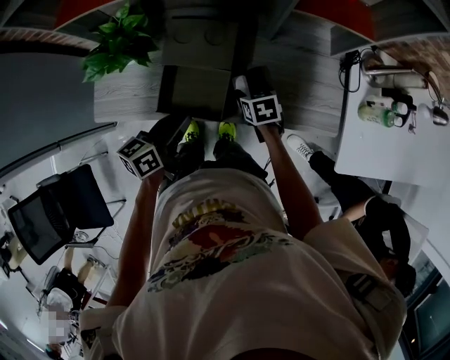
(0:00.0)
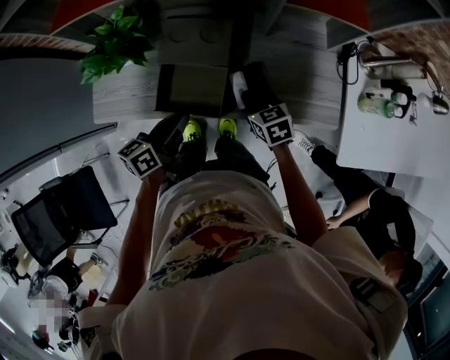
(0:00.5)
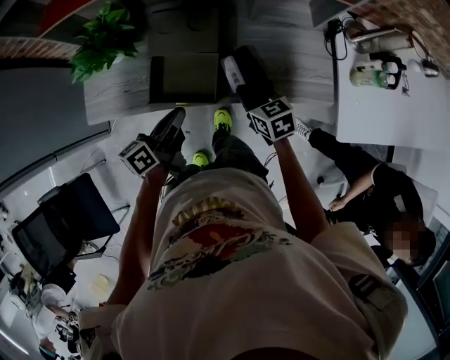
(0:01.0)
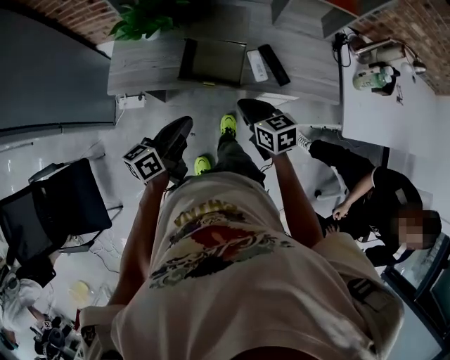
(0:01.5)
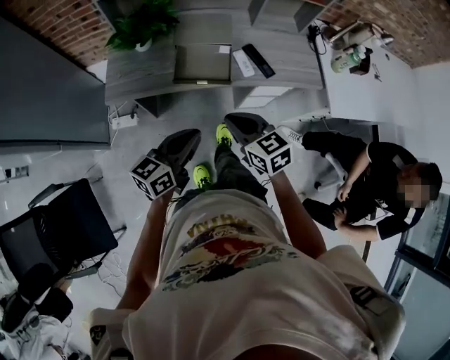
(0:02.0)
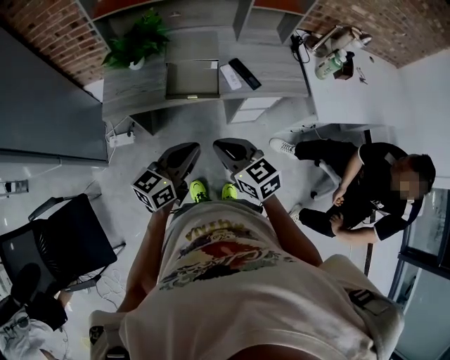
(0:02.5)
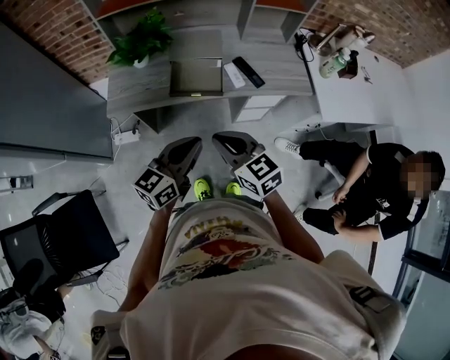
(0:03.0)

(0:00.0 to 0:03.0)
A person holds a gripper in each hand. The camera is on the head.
0:00.0 - 0:01.5: The left gripper travels backward and to the left by approximately 20 cm, while the right gripper shifts about 25 cm backward, upward and to the left, turns by approximately 20 degrees, and closes its fingers.
0:01.5 - 0:03.0: The right gripper moves backward and upward, roughly 20 cm, while the left gripper moves backward, upward and to the right, some 15 cm, and turns by some 30 degrees.

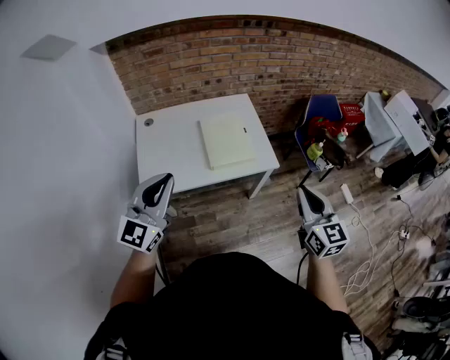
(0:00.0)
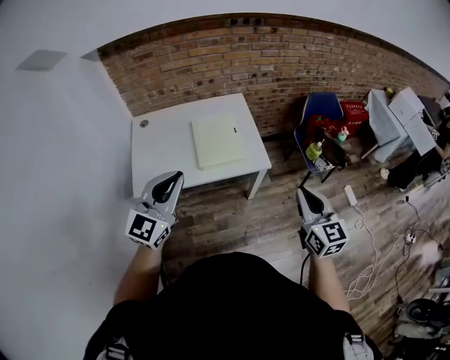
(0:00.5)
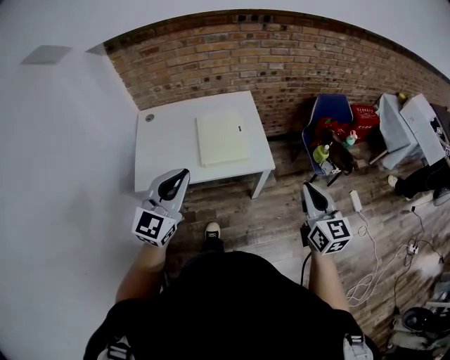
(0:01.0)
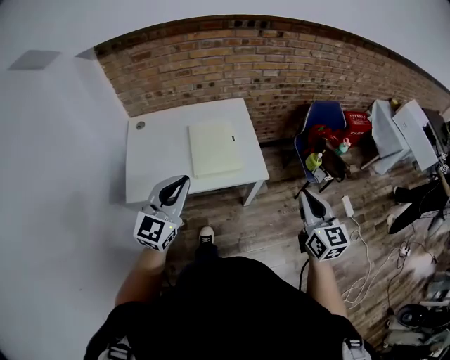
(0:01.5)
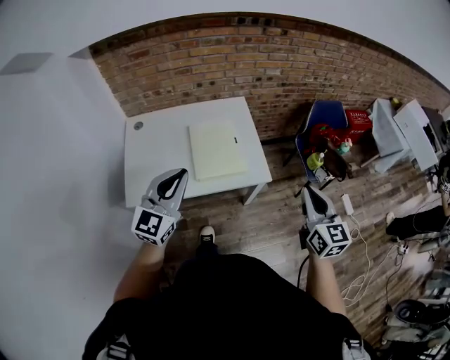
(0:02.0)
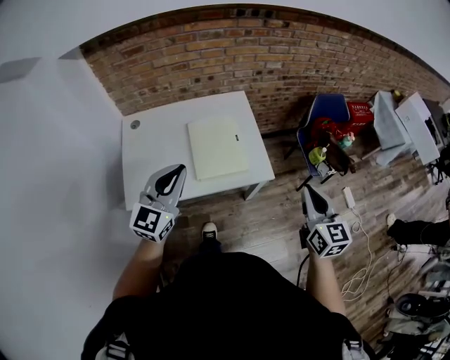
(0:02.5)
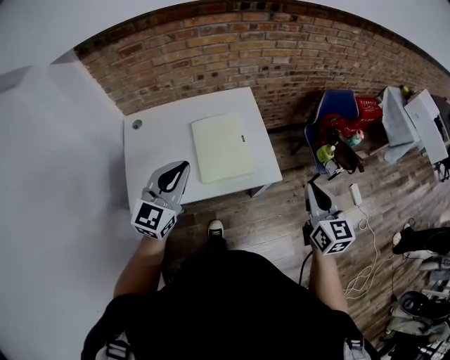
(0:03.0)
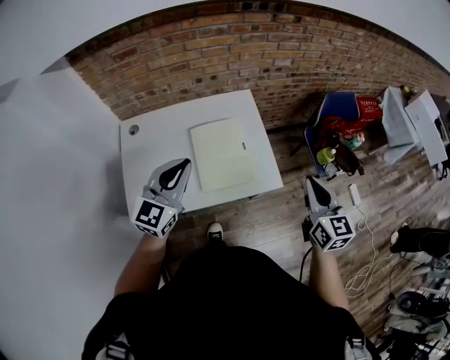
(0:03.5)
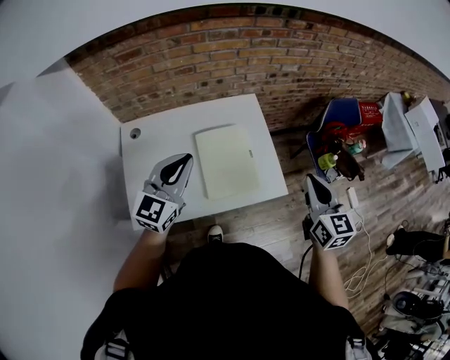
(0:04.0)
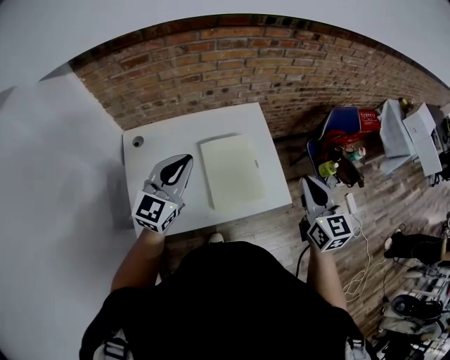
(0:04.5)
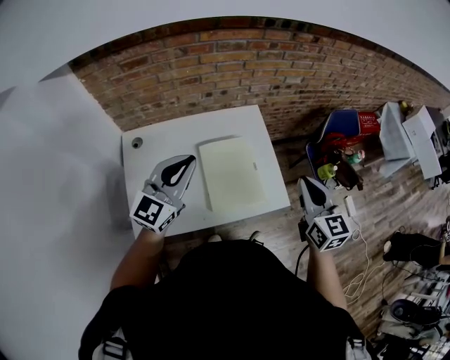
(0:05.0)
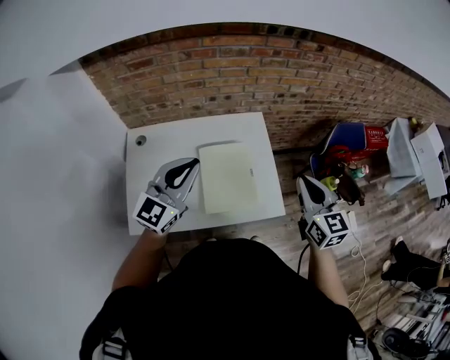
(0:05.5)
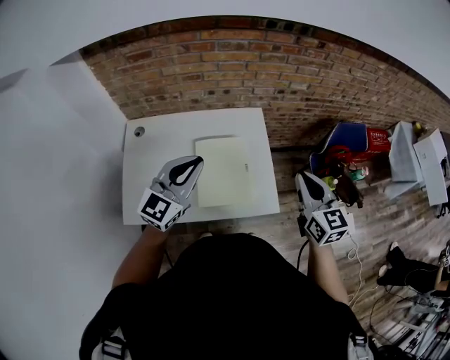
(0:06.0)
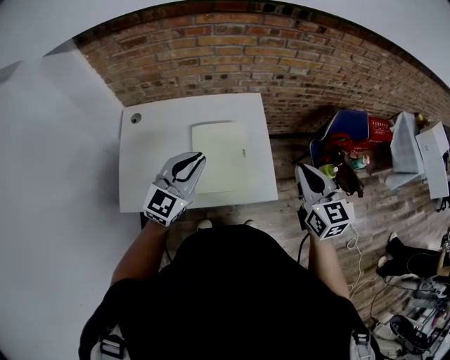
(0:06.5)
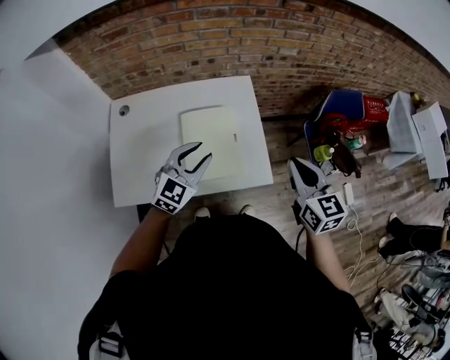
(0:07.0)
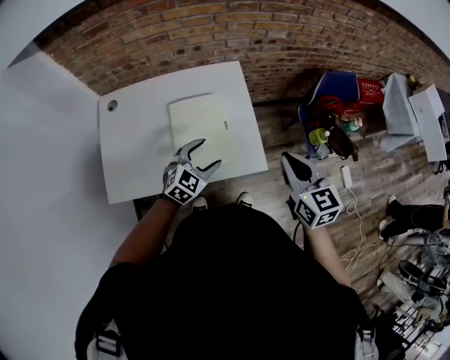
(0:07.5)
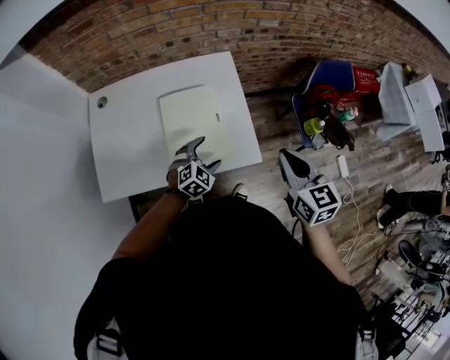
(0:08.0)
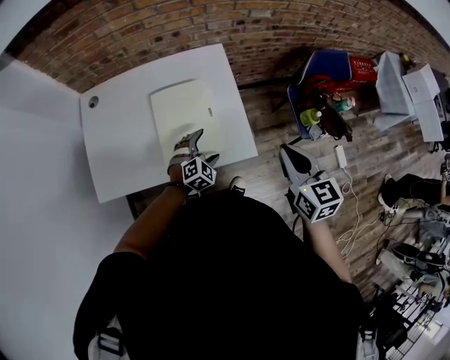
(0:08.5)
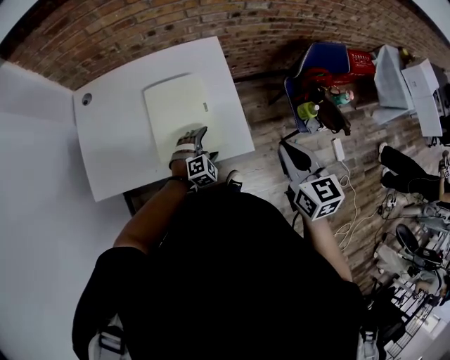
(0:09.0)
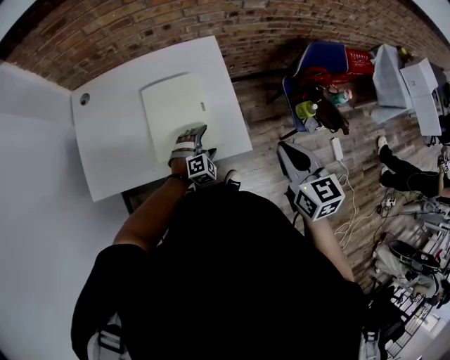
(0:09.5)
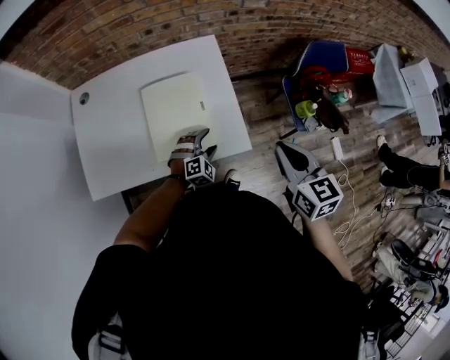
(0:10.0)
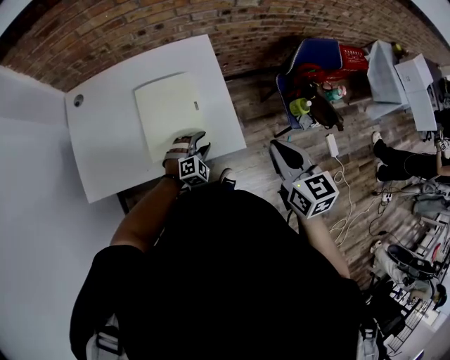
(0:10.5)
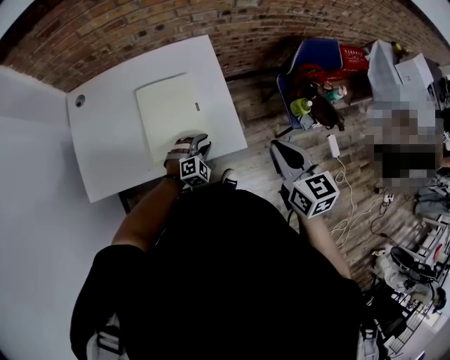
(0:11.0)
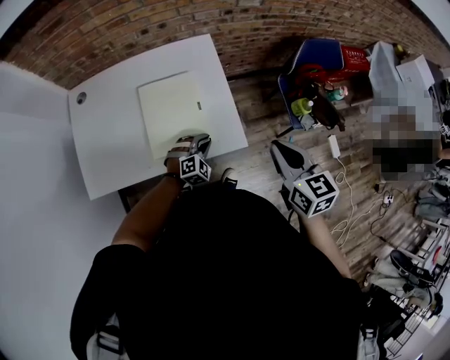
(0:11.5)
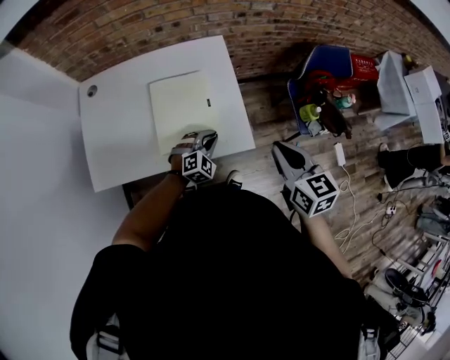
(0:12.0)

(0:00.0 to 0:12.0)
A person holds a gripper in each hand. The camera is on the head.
0:00.0 - 0:02.0: The left gripper shifts approximately 20 cm forward, to the right and downward. The right gripper goes some 15 cm forward and to the right.
0:02.0 - 0:04.0: The two grippers go about 20 cm forward and to the left.
0:04.0 - 0:06.0: The right gripper goes roughly 5 cm forward. The left gripper heads to the right, covering approximately 5 cm.
0:06.0 - 0:08.0: The left gripper heads downward and to the right, covering some 35 cm, angles its fingers downward, by some 40 degrees, and opens. The right gripper goes approximately 10 cm downward and backward.
0:08.0 - 0:10.0: The left gripper heads downward and to the right, covering roughly 10 cm.
0:10.0 - 0:12.0: The left gripper closes its fingers.

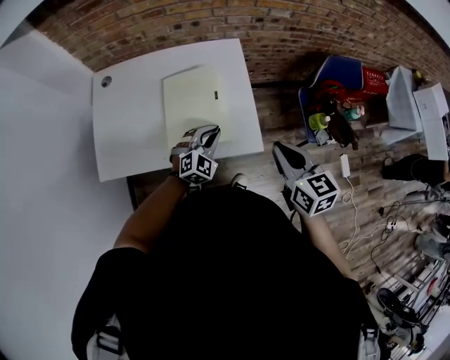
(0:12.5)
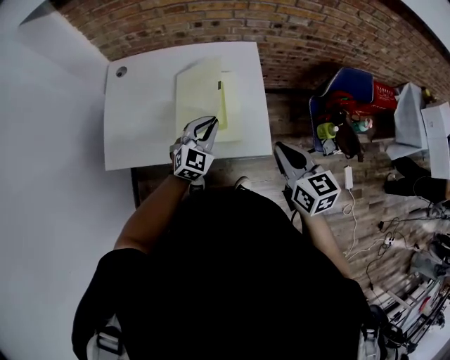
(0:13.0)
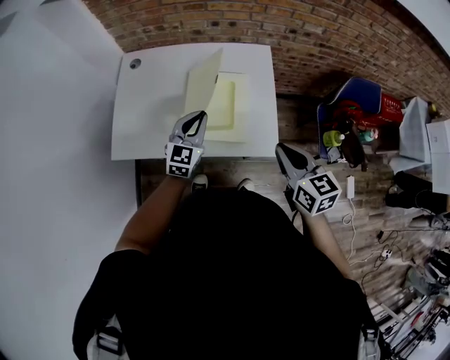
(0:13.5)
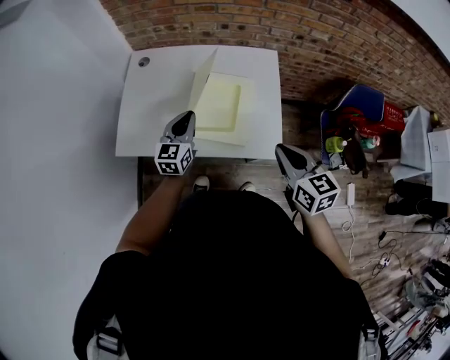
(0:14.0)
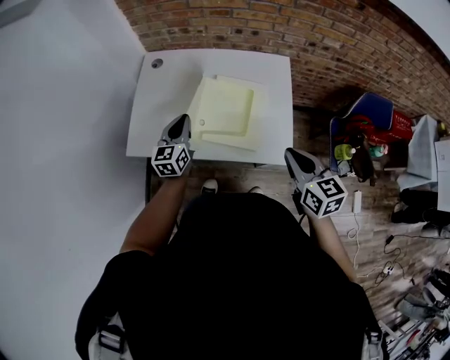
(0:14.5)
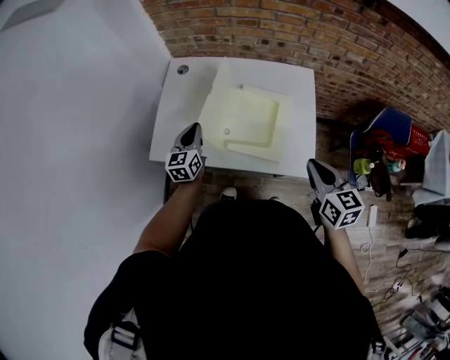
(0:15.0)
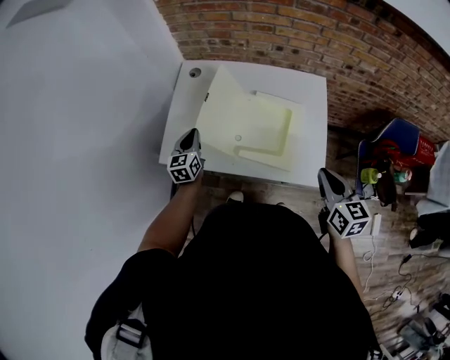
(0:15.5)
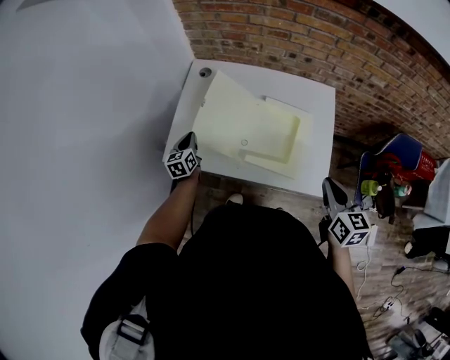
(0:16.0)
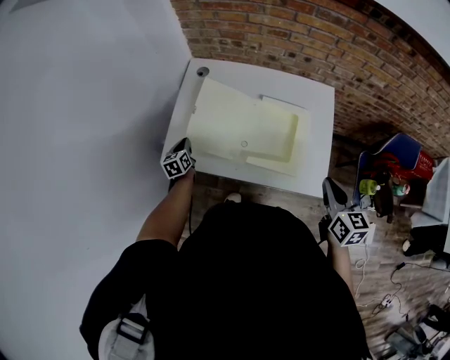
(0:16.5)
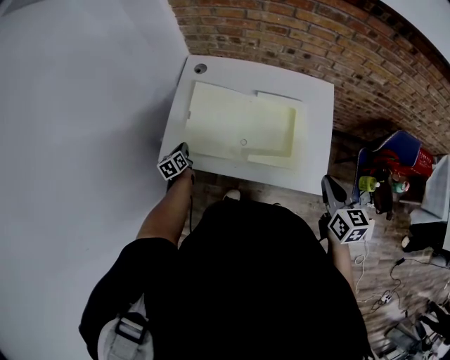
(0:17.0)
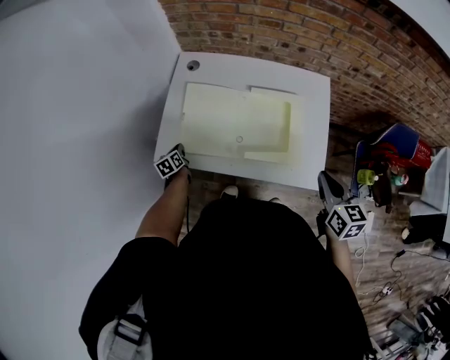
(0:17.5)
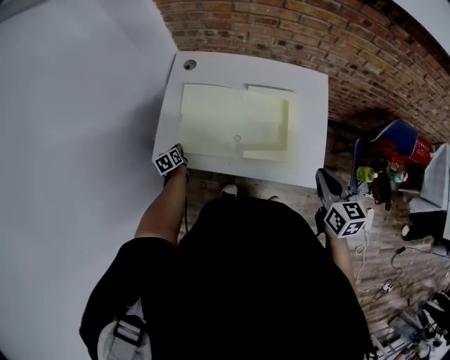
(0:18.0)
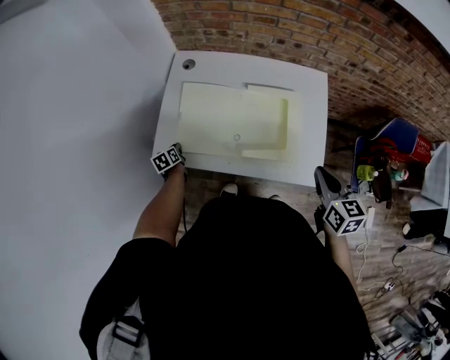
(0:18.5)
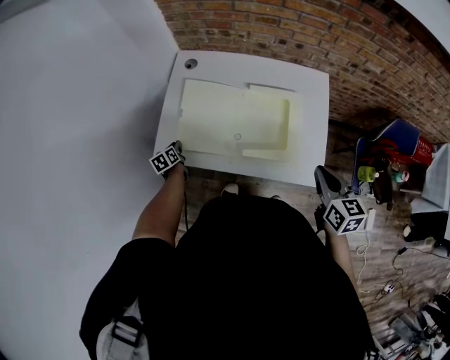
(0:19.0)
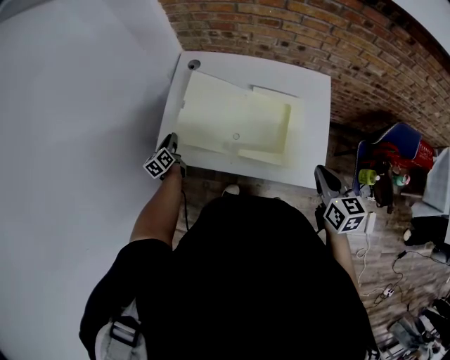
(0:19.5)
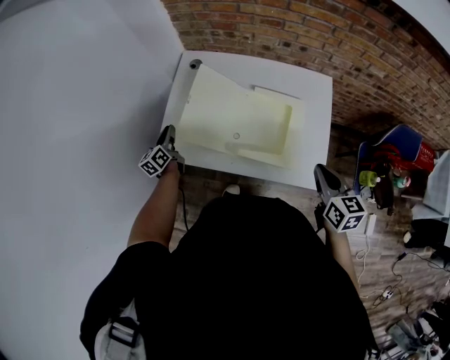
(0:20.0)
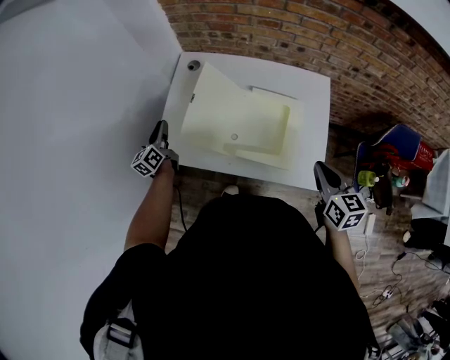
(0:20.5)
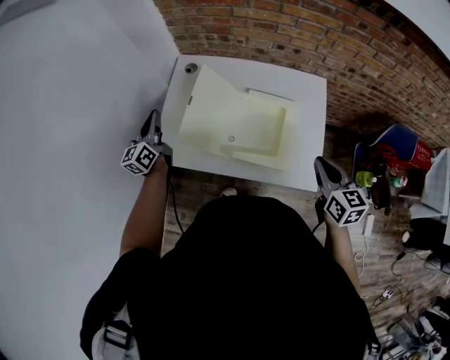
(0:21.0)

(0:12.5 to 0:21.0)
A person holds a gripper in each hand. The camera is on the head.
0:12.5 - 0:14.5: The right gripper is displaced to the left by approximately 10 cm. The left gripper moves to the left, roughly 25 cm, and rotates around the line of its fingers by some 50 degrees, counterclockwise from behind.
0:14.5 - 0:16.5: The left gripper is displaced to the left and downward by approximately 25 cm, and rotates some 30 degrees.
0:16.5 - 0:19.0: The left gripper goes approximately 5 cm downward.
0:19.0 - 0:21.0: The left gripper travels upward by roughly 30 cm, and angles its fingers upward, by approximately 50 degrees.

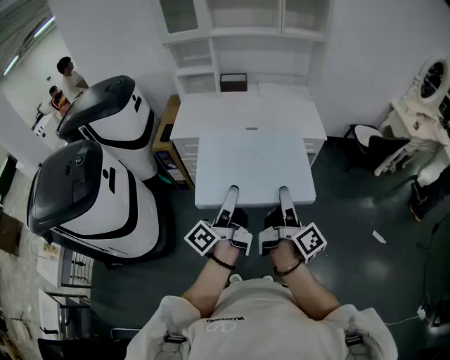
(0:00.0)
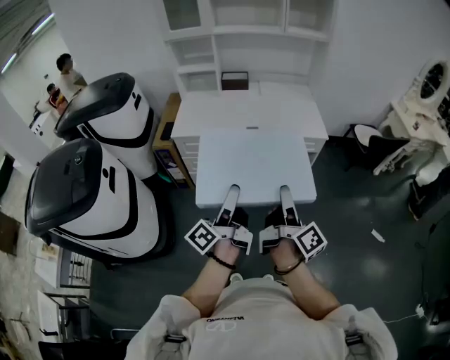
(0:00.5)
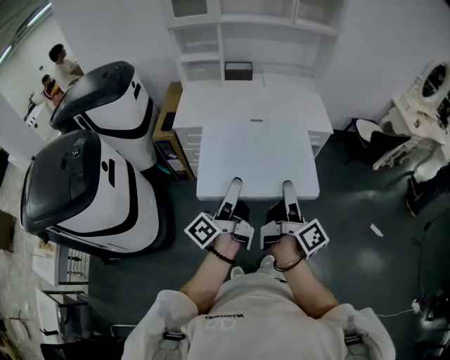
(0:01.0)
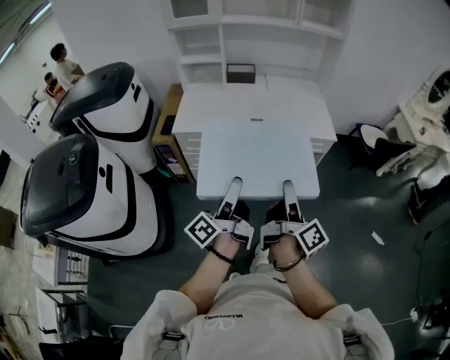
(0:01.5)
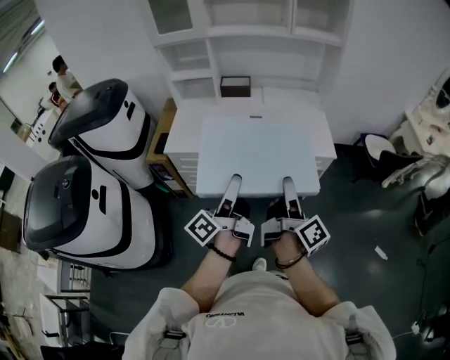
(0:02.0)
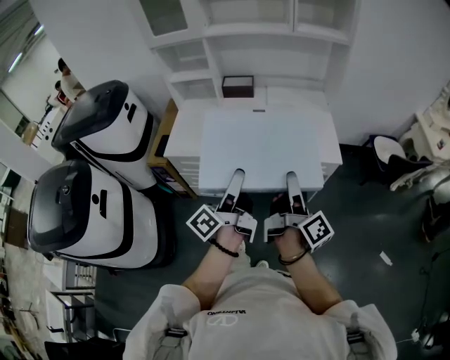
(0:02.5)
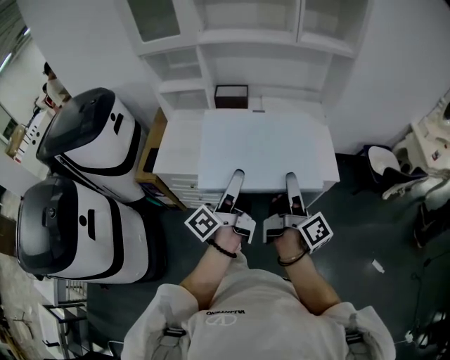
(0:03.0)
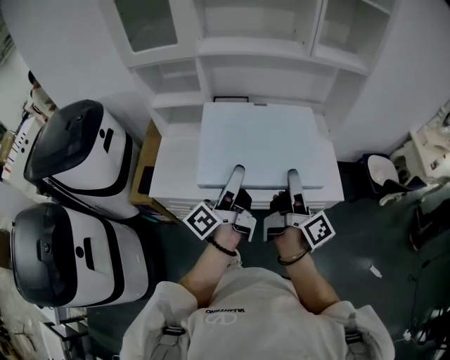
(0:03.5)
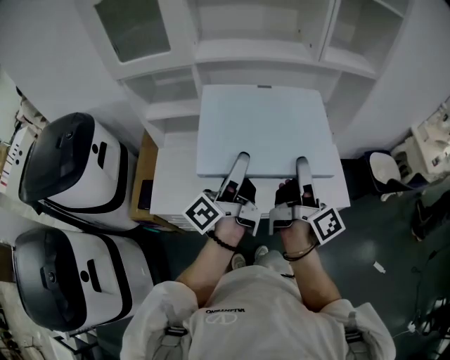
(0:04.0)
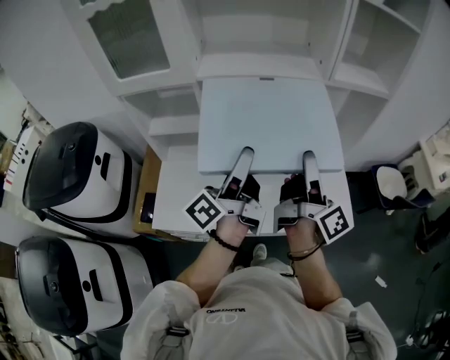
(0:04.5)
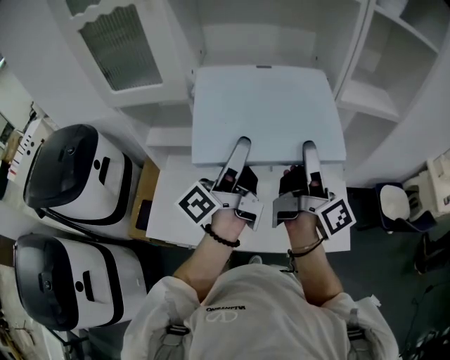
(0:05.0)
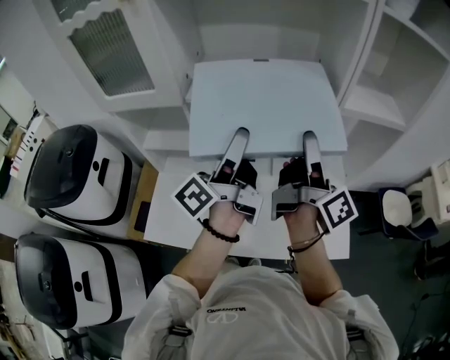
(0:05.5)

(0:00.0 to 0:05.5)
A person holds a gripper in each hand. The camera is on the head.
0:00.0 - 0:02.0: The two grippers go roughly 20 cm forward.
0:02.0 - 0:03.5: Both grippers move forward, approximately 30 cm.
0:03.5 - 0:05.5: The two grippers go some 30 cm forward and upward.
